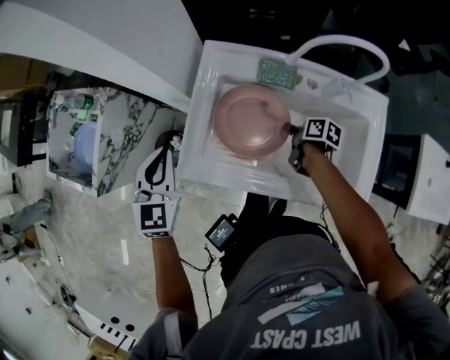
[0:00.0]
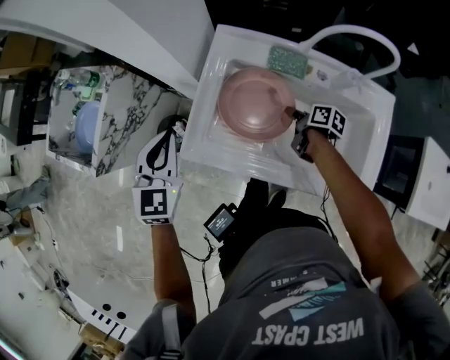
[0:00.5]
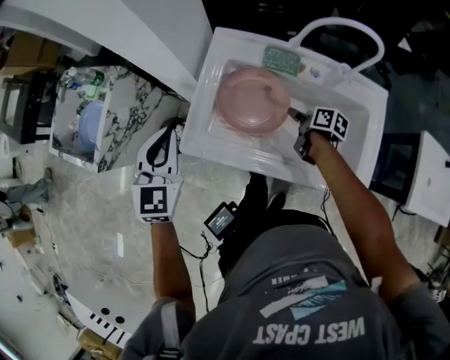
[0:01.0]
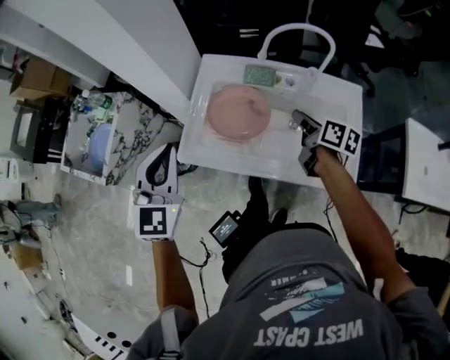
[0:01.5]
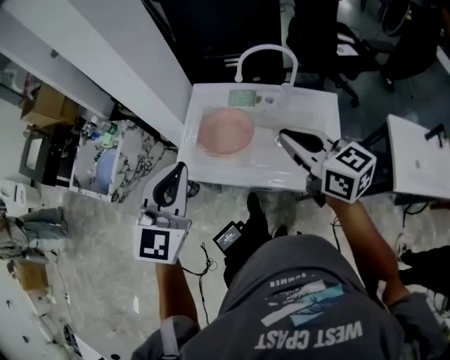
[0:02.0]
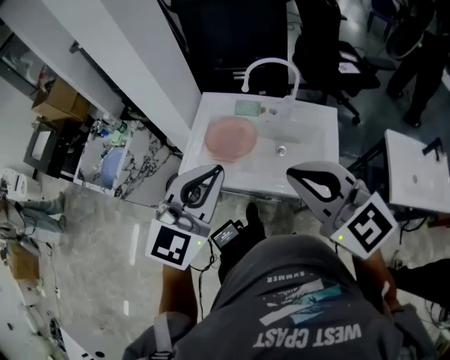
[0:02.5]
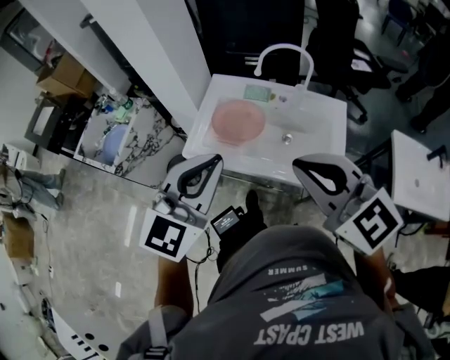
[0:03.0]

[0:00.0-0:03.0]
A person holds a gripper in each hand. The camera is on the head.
0:00.0 to 0:01.5: The left gripper travels upward and backward by some 20 cm, while the right gripper is displaced upward by some 20 cm, and swivels roughly 30 degrees.
0:01.5 to 0:03.0: The right gripper heads upward and backward, covering about 40 cm, and rolls counterclockwise, seen from behind, by approximately 70 degrees. Meanwhile the left gripper travels backward, to the right and upward by some 25 cm.

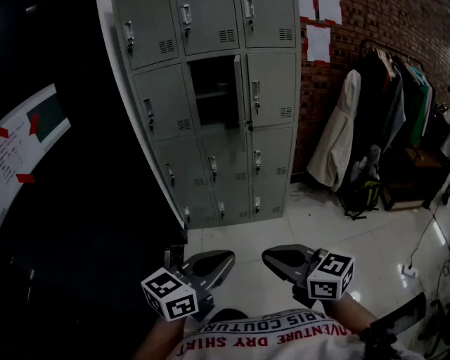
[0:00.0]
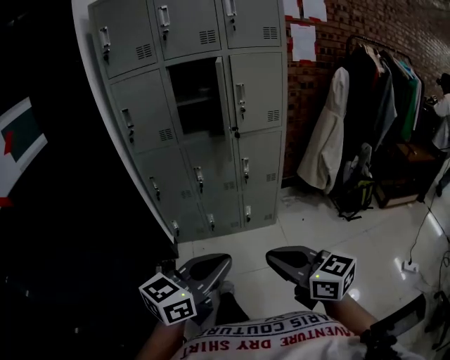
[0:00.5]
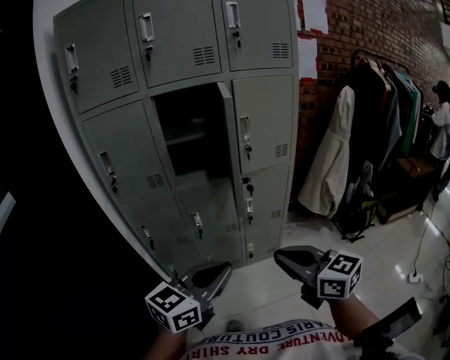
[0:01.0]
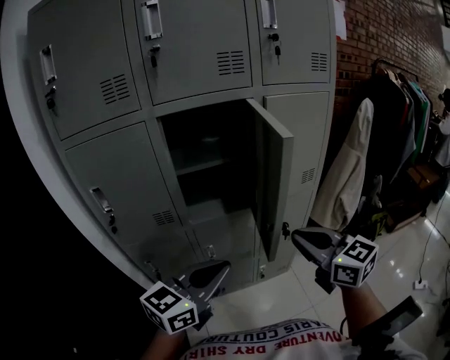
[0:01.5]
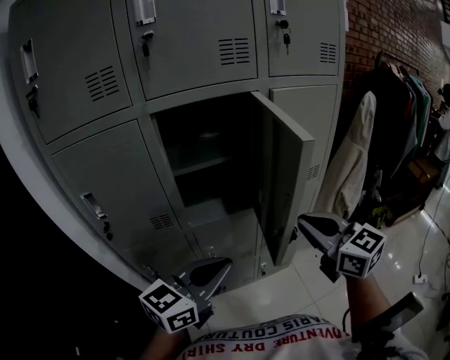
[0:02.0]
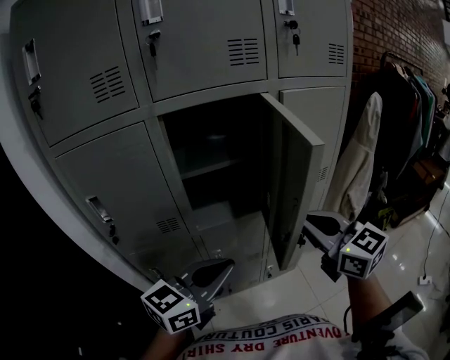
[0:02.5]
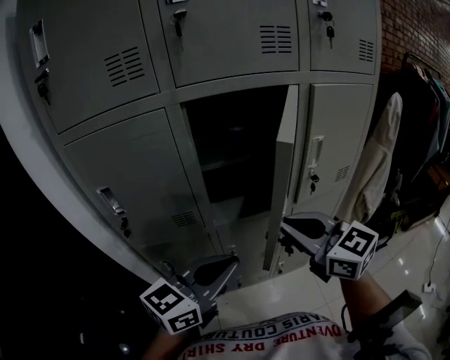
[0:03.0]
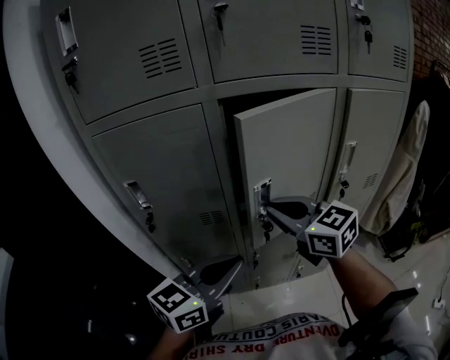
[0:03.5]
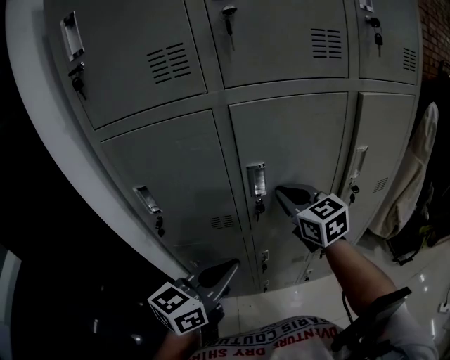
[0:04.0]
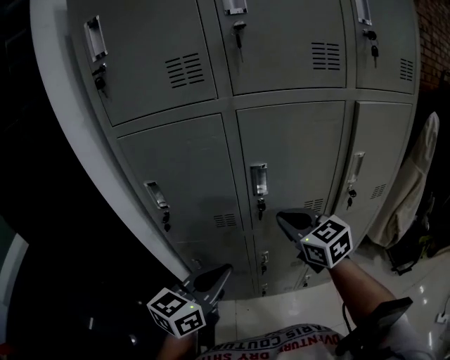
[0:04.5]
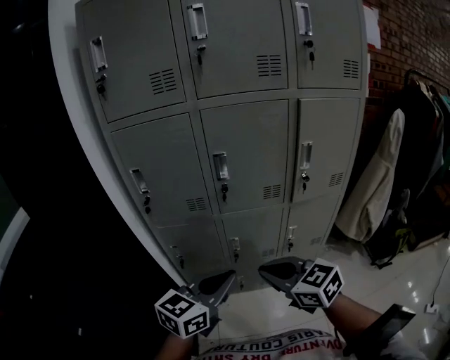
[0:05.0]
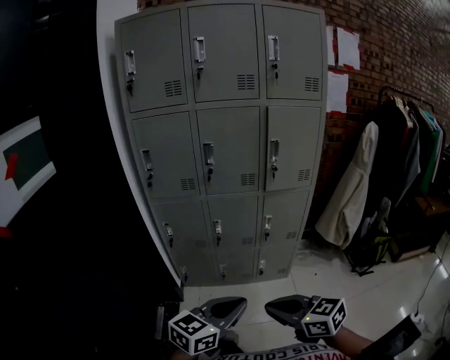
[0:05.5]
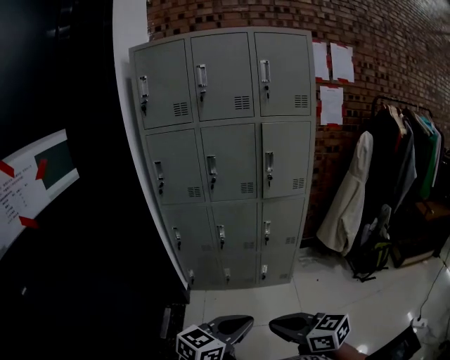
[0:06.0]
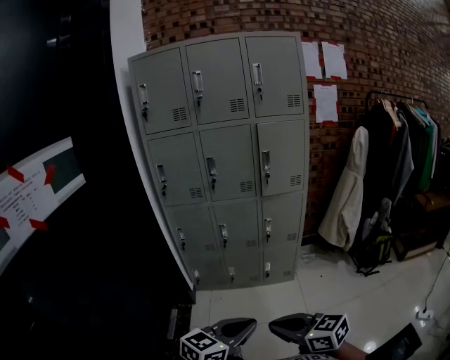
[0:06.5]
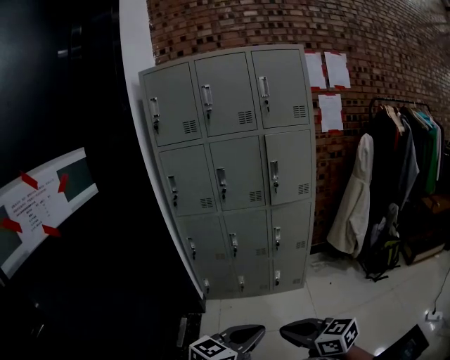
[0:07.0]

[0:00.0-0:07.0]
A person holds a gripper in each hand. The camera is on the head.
0:00.0 to 0:02.0: The pair of grippers is taken forward, about 60 cm. The right gripper rotates about 30 degrees.
0:02.0 to 0:03.5: The left gripper goes roughly 10 cm to the left, while the right gripper is displaced to the left and forward by about 25 cm, and changes its angle by approximately 20 degrees.
0:03.5 to 0:05.0: The left gripper moves backward, roughly 15 cm, while the right gripper moves backward, some 25 cm.
0:05.0 to 0:07.0: The two grippers travel together, backward, some 50 cm.

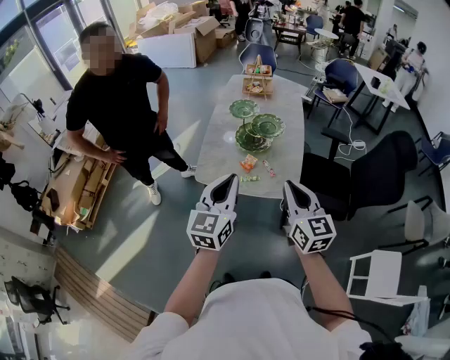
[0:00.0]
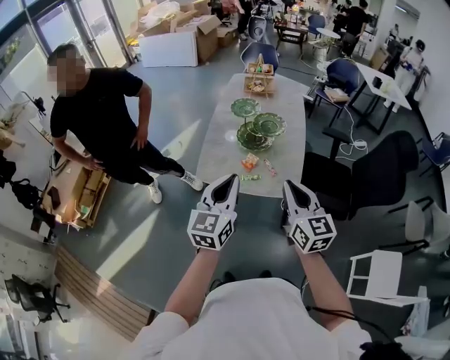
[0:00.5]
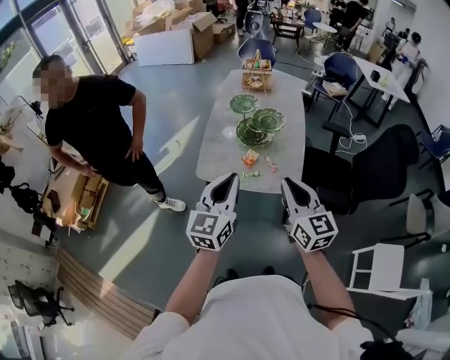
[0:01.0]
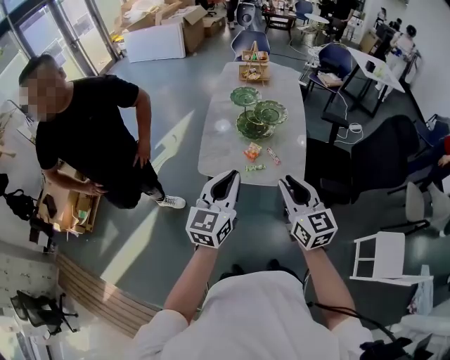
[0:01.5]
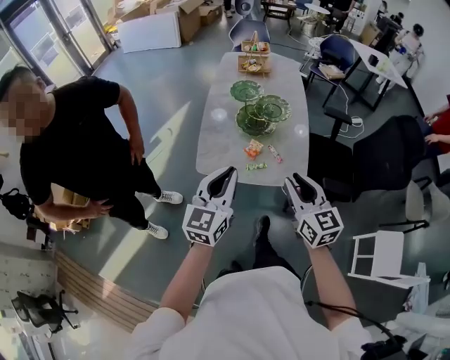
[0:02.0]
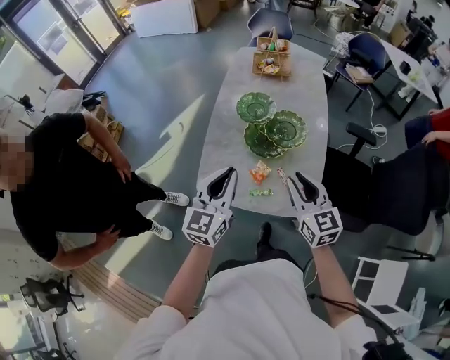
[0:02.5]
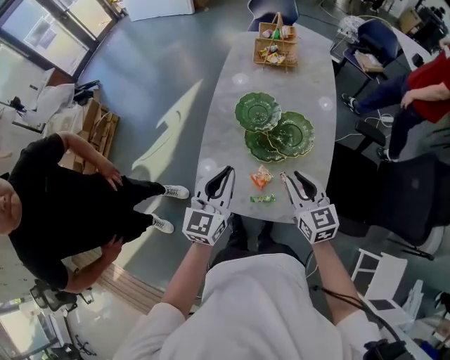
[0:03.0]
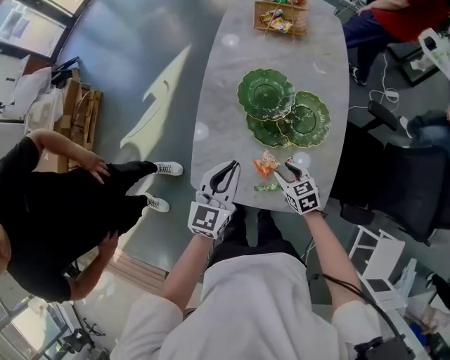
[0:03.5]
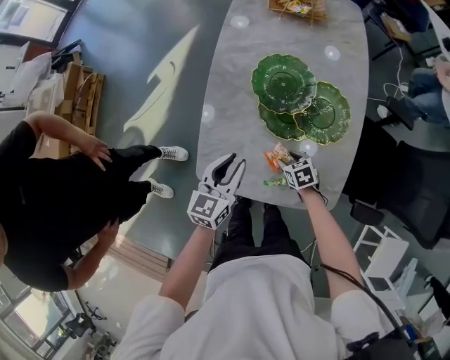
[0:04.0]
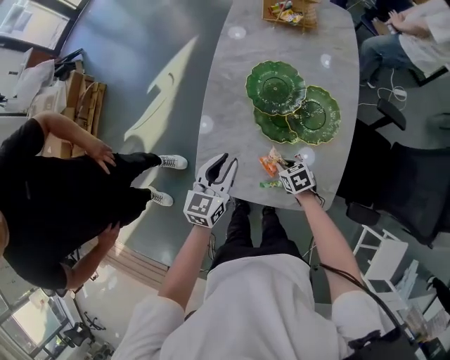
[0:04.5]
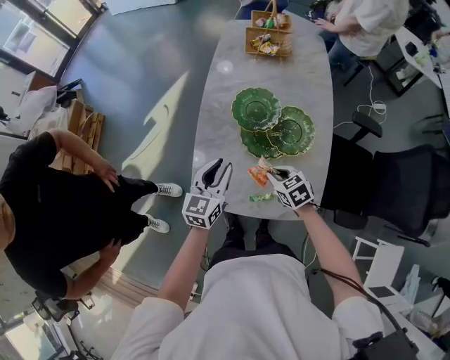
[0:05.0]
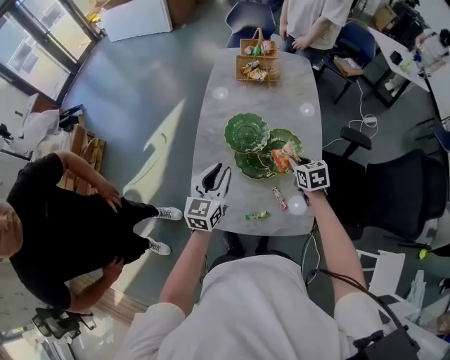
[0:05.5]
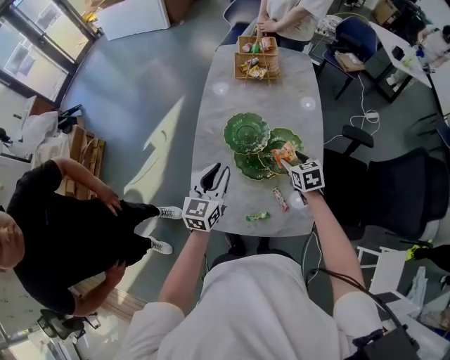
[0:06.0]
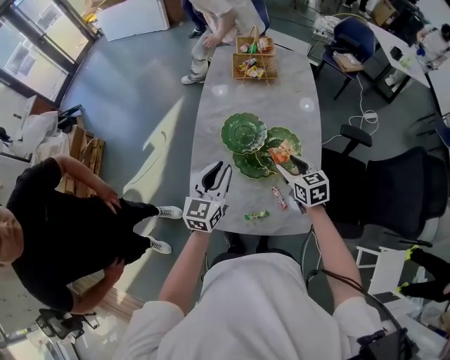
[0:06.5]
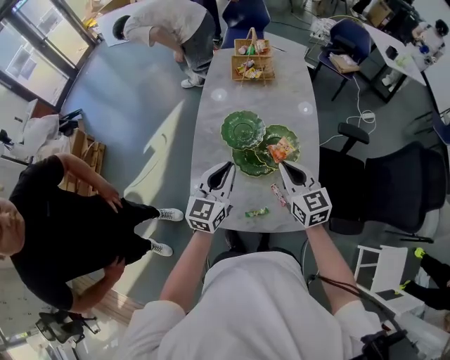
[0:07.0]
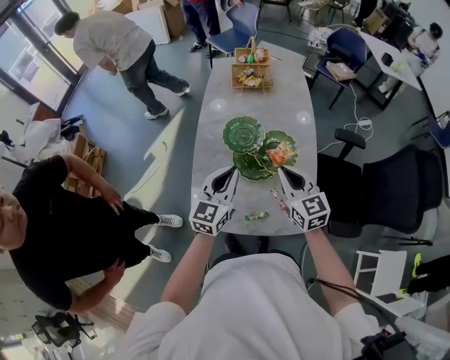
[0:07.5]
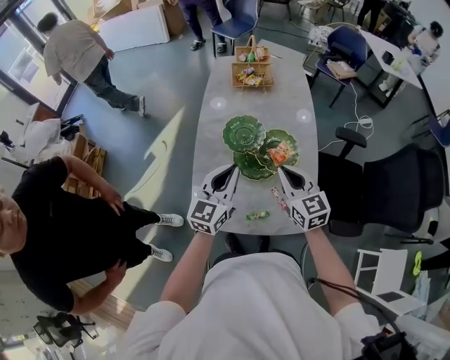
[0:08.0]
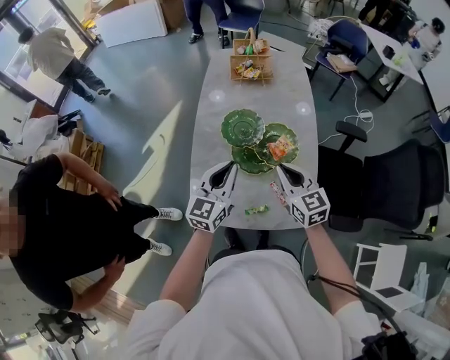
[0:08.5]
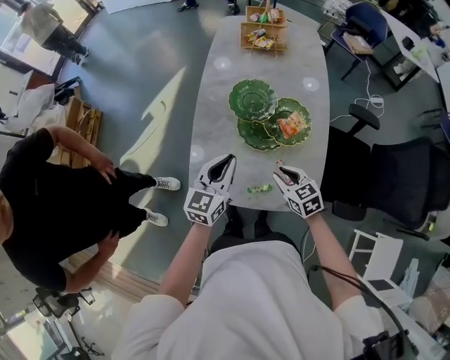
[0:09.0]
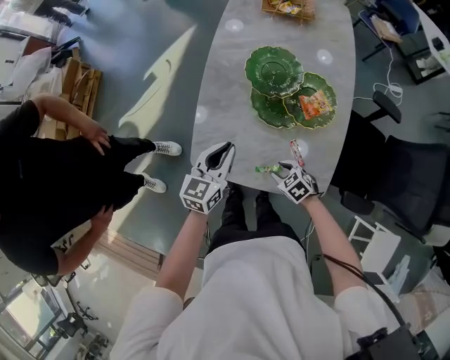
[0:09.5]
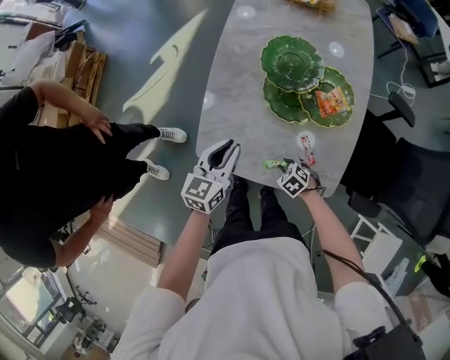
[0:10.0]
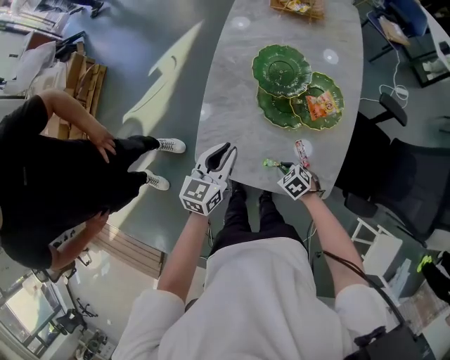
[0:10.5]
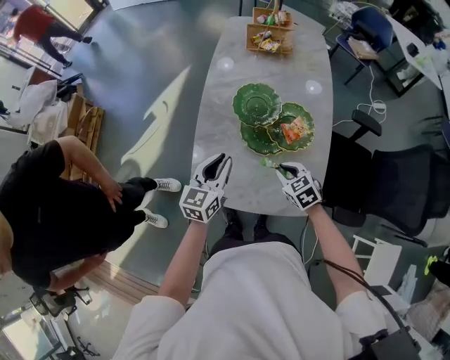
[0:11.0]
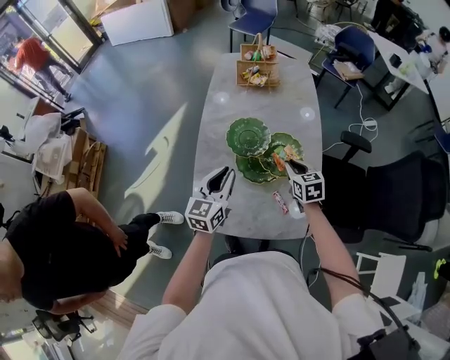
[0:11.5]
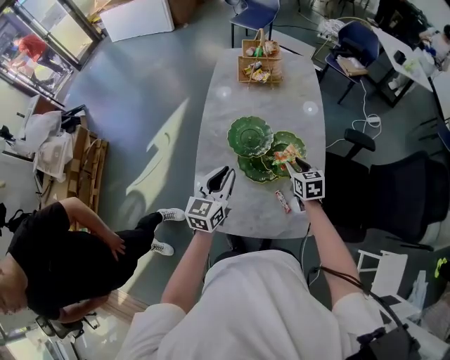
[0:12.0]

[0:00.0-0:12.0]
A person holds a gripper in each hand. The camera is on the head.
0:00.0 to 0:02.0: Both grippers travel together to the left, about 5 cm.
0:02.0 to 0:04.0: The right gripper moves downward and forward, about 60 cm, tips its fingers downward by some 50 degrees, and opens, while the left gripper goes approximately 40 cm forward and downward, rotates about 20 degrees, and opens.
0:04.0 to 0:06.0: The left gripper goes approximately 15 cm upward and forward; the right gripper travels upward, to the right and forward by roughly 30 cm, turns by about 20 degrees, and closes and opens again.
0:06.0 to 0:08.0: The right gripper goes roughly 20 cm upward and backward, tips its fingers upward by about 30 degrees, and closes up; the left gripper shifts some 10 cm upward, and closes.
0:08.0 to 0:10.0: The left gripper is displaced downward by about 20 cm, and turns by roughly 30 degrees, while the right gripper heads downward, covering roughly 40 cm, points its fingers roughly 60 degrees further downward, and opens its fingers.
0:10.0 to 0:12.0: The right gripper travels upward by approximately 25 cm, and tilts its fingers about 30 degrees upward; the left gripper shifts roughly 15 cm upward.

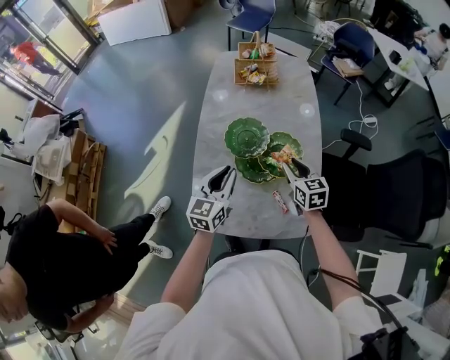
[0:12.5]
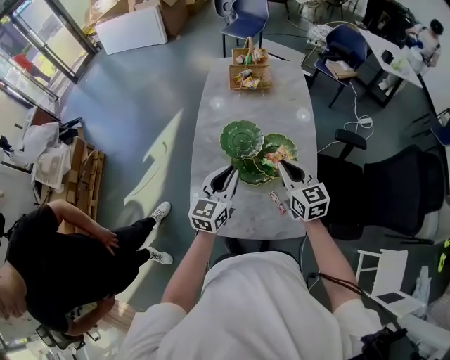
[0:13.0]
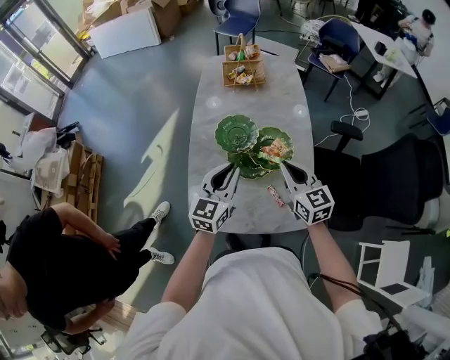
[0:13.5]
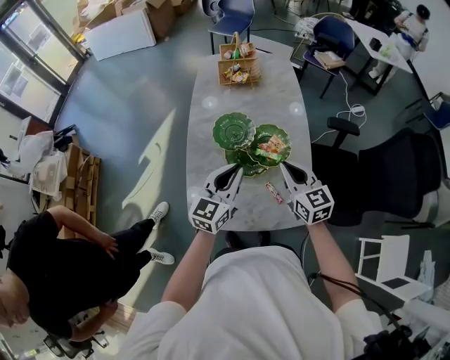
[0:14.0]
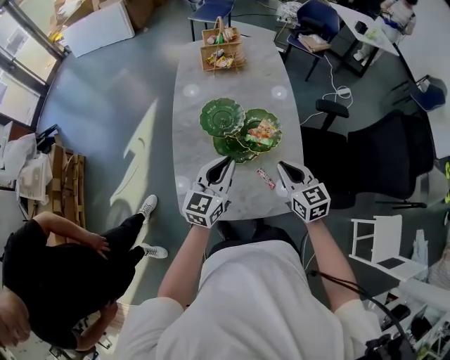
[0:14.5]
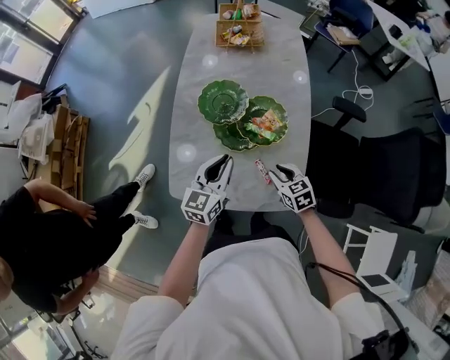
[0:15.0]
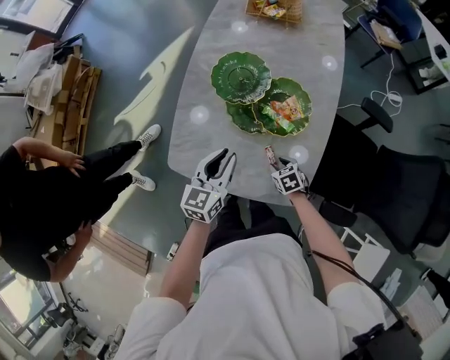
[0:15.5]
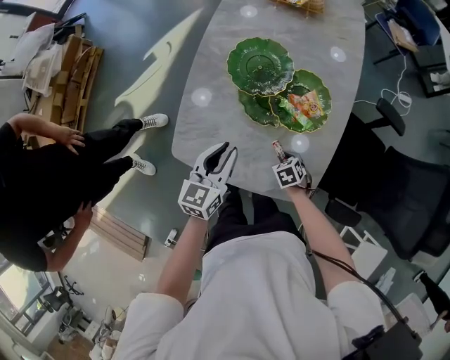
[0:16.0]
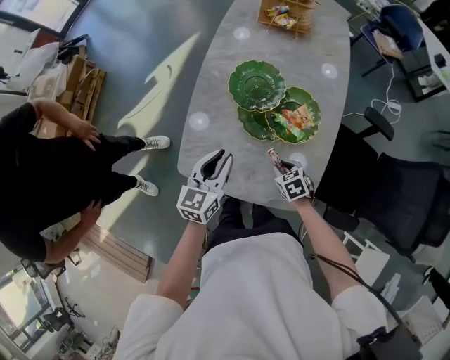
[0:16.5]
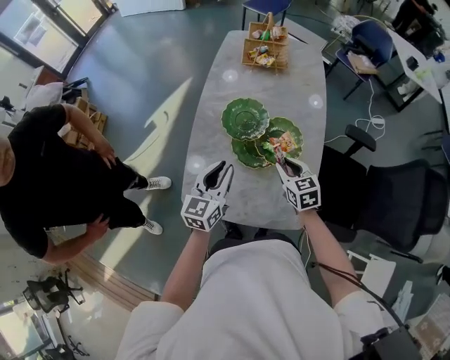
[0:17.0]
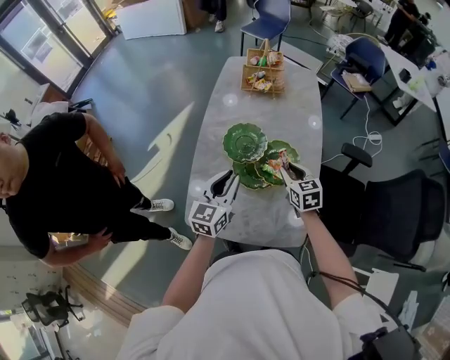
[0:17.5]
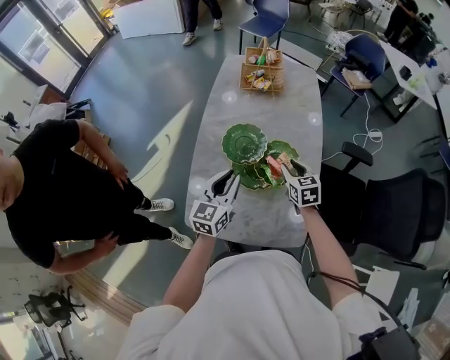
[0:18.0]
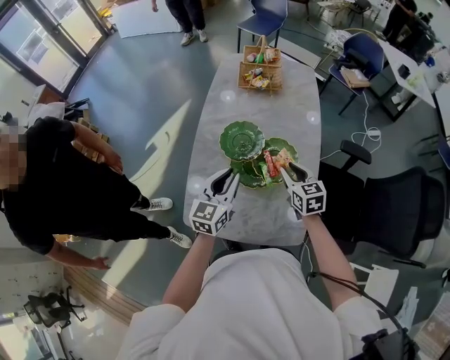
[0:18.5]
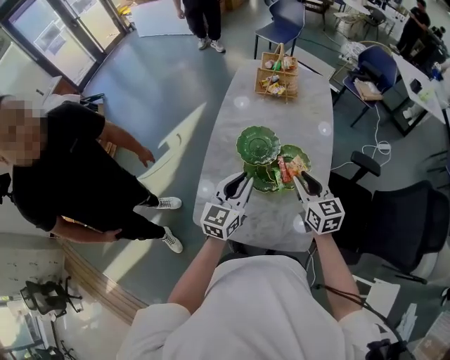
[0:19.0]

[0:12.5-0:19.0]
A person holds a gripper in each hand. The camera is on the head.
0:12.5 to 0:14.5: The right gripper shifts about 15 cm backward and upward, and closes. The left gripper is displaced to the right by roughly 5 cm.
0:14.5 to 0:17.0: The right gripper travels downward and back again, roughly 35 cm each way, and opens its fingers. The left gripper moves approximately 15 cm downward and comes back, and rotates roughly 20 degrees.
0:17.0 to 0:19.0: The right gripper heads upward, covering about 10 cm. Meanwhile the left gripper is displaced upward by approximately 5 cm.
